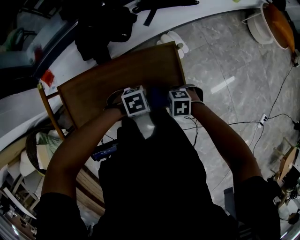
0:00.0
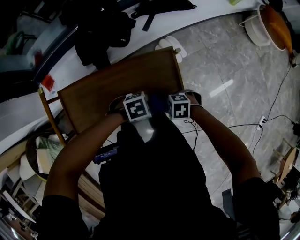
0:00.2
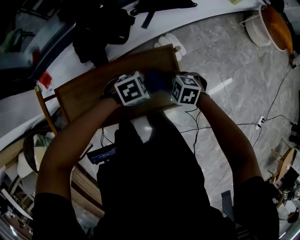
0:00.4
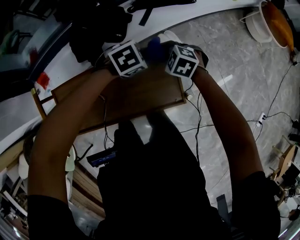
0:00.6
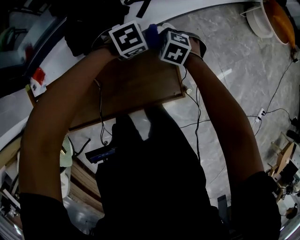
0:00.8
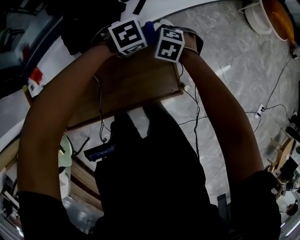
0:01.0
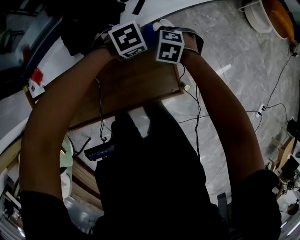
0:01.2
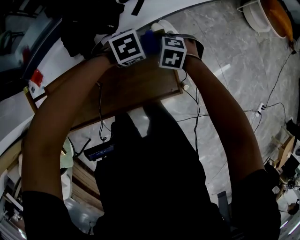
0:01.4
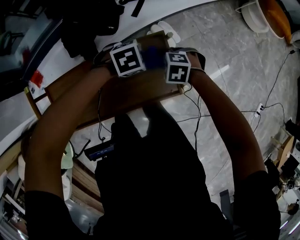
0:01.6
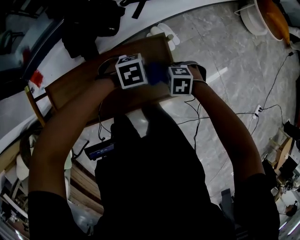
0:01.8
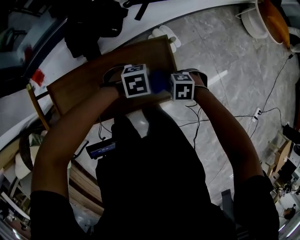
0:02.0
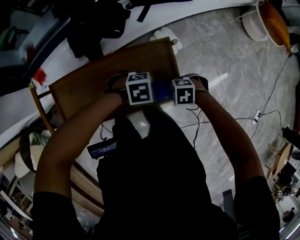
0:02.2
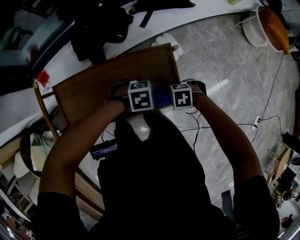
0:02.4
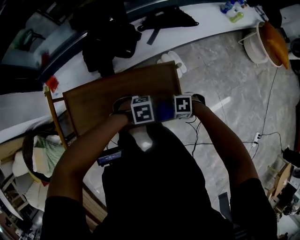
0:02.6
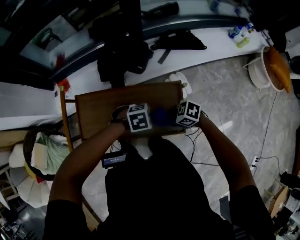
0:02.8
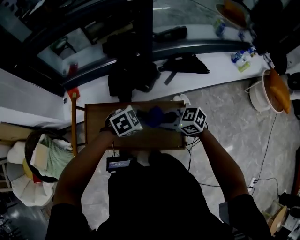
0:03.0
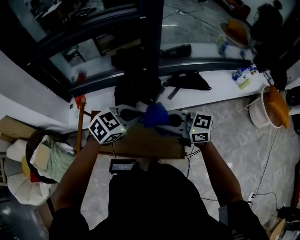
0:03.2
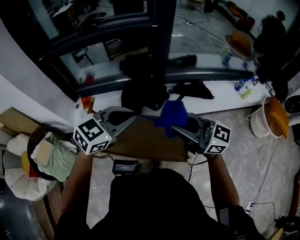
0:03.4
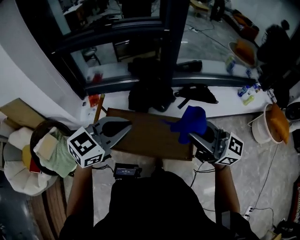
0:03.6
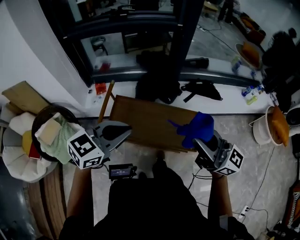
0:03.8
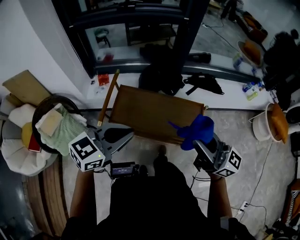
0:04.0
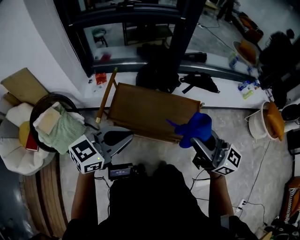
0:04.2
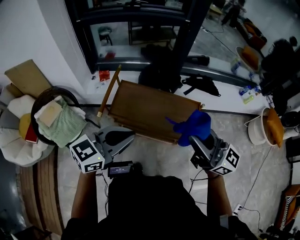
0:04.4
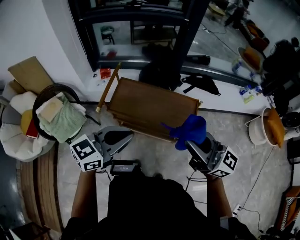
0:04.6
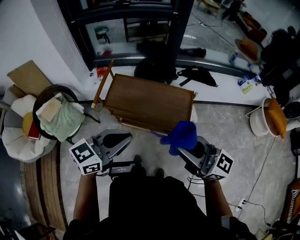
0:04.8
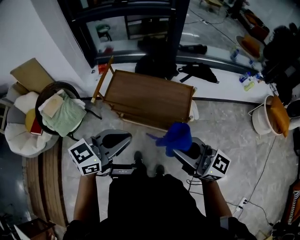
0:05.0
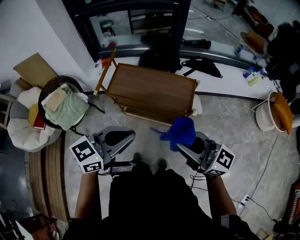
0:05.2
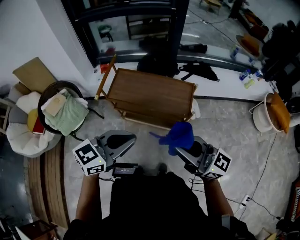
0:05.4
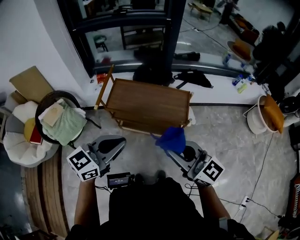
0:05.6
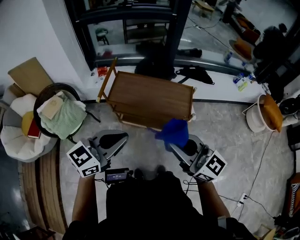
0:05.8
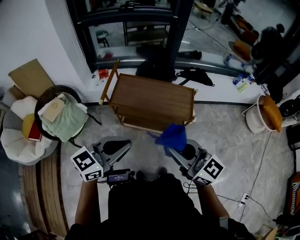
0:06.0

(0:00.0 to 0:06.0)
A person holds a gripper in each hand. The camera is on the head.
0:00.0 - 0:01.6: The left gripper ends up about 15 cm from where it was.
0:01.6 - 0:03.0: The right gripper is displaced upward by approximately 20 cm, and points its fingers about 50 degrees further upward. Meanwhile the left gripper goes about 15 cm upward, and turns by approximately 30 degrees.
0:03.0 - 0:04.4: The left gripper ends up some 40 cm from where it was, and points its fingers approximately 40 degrees further upward, while the right gripper shifts some 30 cm upward, and points its fingers approximately 40 degrees further upward.
0:04.4 - 0:06.0: Both grippers travel together backward, approximately 15 cm.

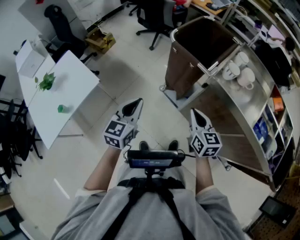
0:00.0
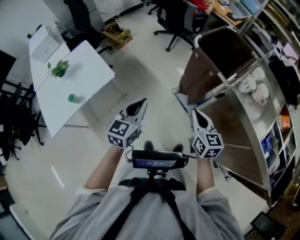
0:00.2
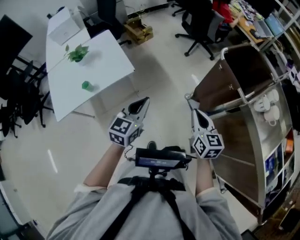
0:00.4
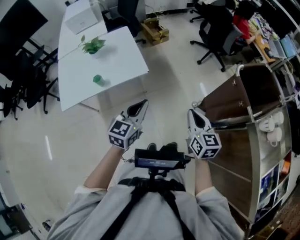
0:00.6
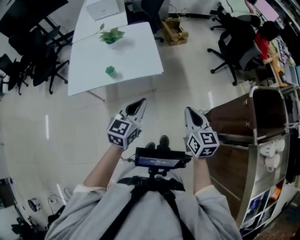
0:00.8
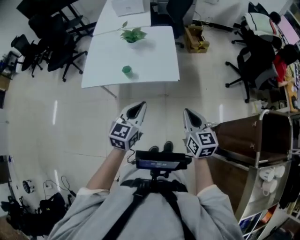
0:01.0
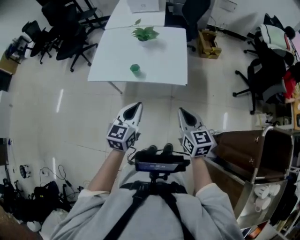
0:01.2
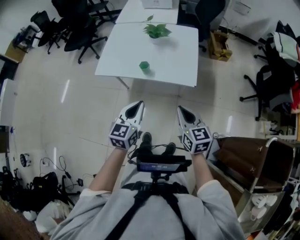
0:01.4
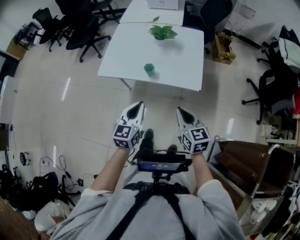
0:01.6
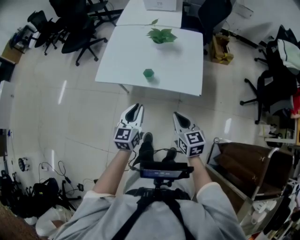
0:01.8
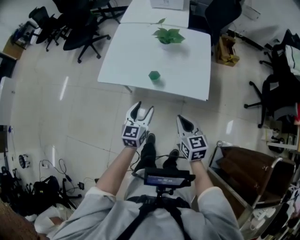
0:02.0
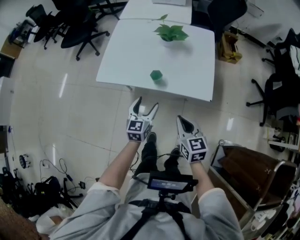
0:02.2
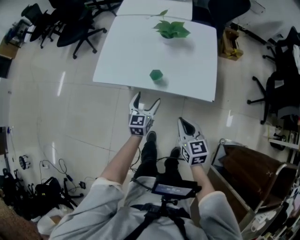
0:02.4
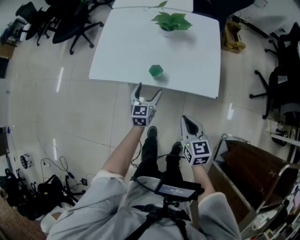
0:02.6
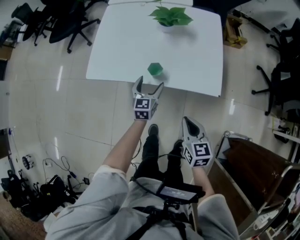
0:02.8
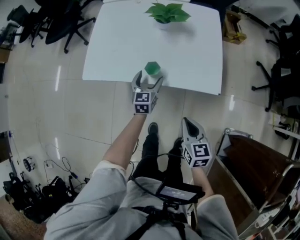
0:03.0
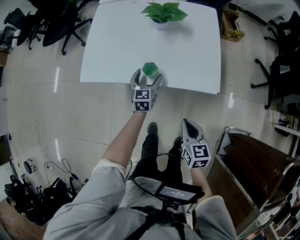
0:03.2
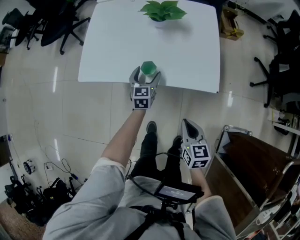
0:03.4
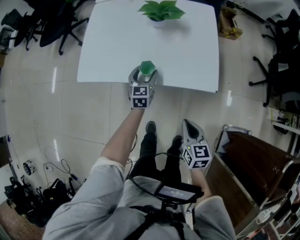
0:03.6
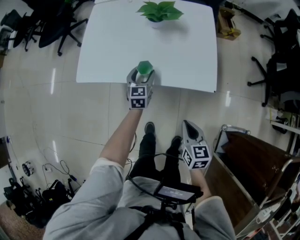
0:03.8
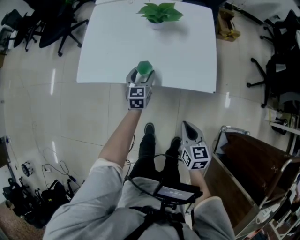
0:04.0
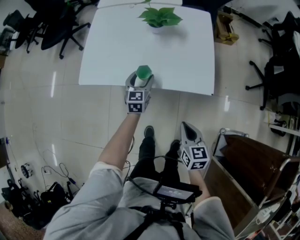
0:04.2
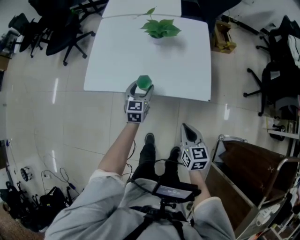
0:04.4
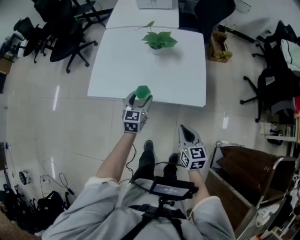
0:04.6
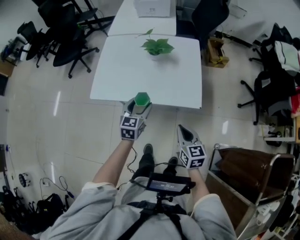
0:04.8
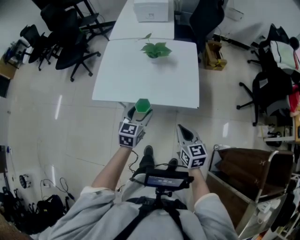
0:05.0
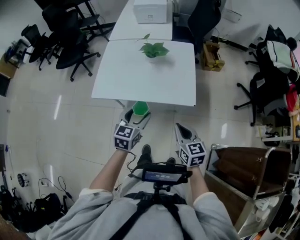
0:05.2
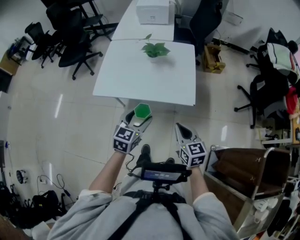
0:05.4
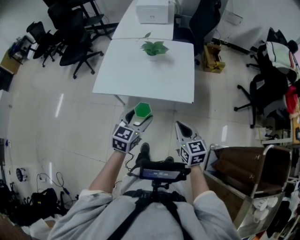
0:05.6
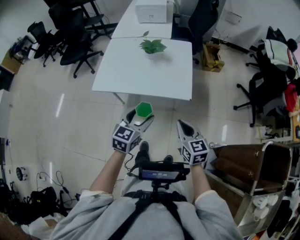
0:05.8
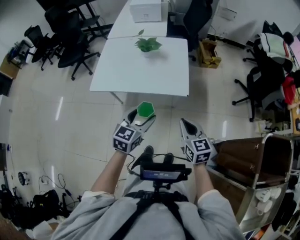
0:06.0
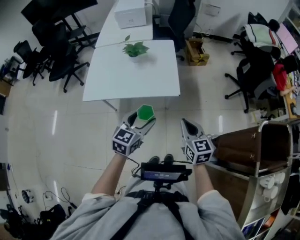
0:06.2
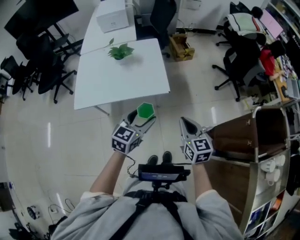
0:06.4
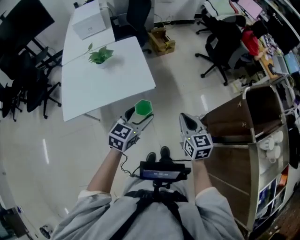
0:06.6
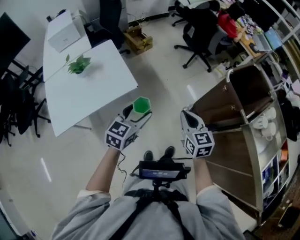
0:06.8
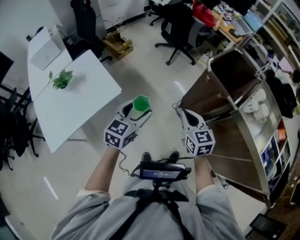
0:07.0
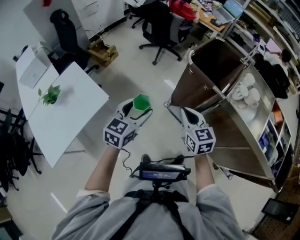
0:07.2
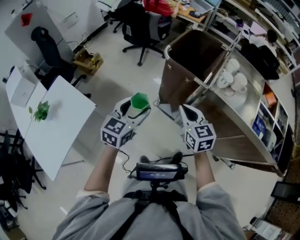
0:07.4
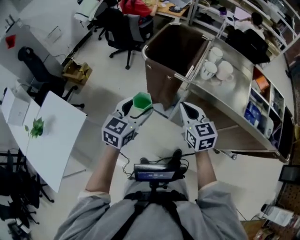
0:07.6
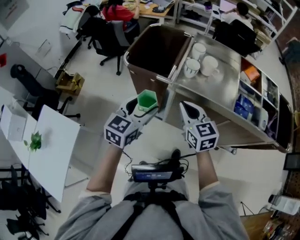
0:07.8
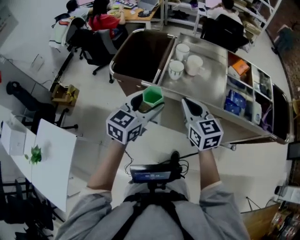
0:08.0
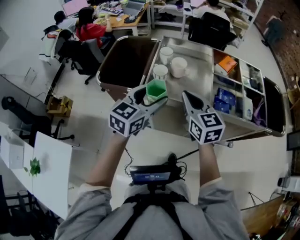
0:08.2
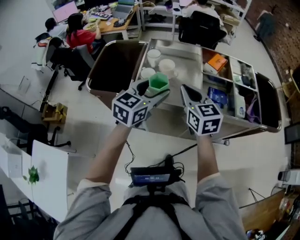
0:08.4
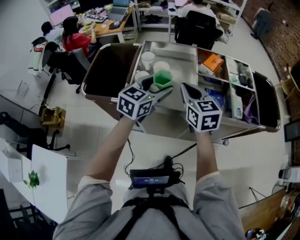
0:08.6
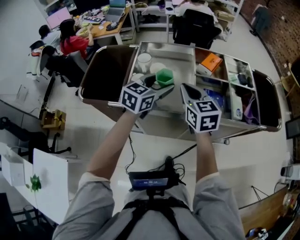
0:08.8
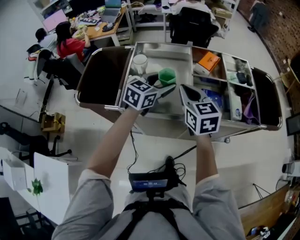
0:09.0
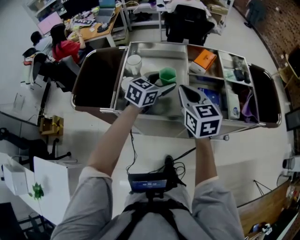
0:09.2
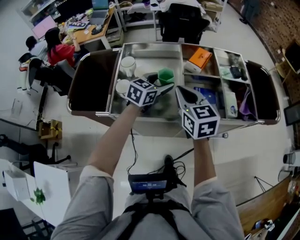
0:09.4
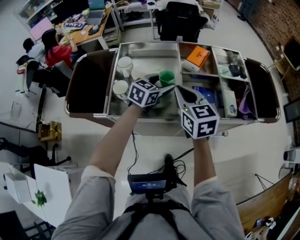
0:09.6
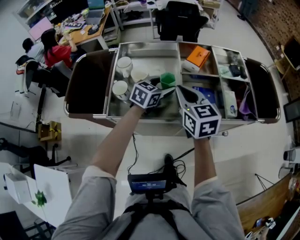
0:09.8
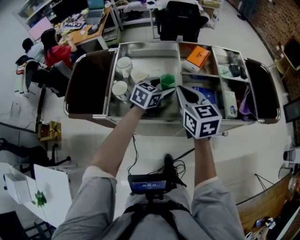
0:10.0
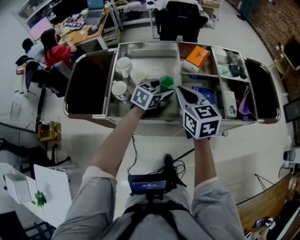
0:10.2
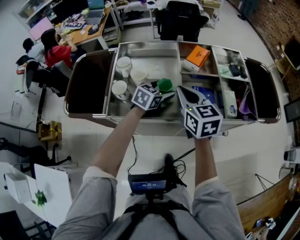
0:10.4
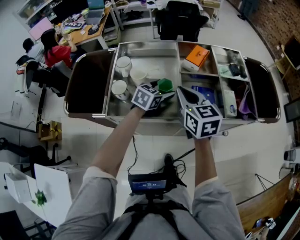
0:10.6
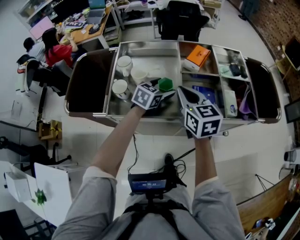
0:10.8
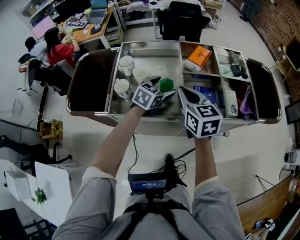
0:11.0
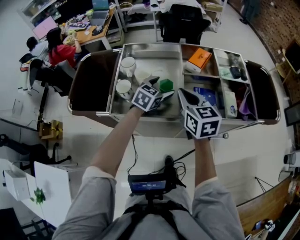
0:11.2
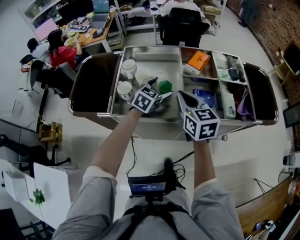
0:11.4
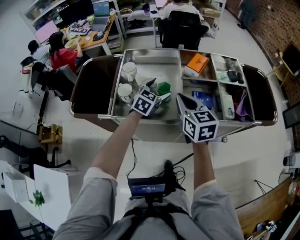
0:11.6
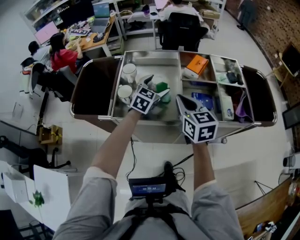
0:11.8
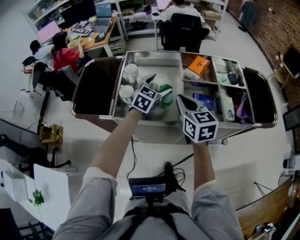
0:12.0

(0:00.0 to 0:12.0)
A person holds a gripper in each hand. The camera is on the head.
0:00.0 - 0:01.6: The pair of grippers is taken about 50 cm. The left gripper swivels some 60 degrees; the right gripper rotates about 70 degrees.
0:01.6 - 0:03.0: The left gripper shifts some 35 cm forward and downward, and opens up; the right gripper is displaced downward and forward by roughly 20 cm.
0:03.0 - 0:04.4: The left gripper shifts approximately 5 cm upward.
0:04.4 - 0:06.0: The right gripper shifts roughly 20 cm upward, backward and to the right; the left gripper heads backward, upward and to the right, covering about 35 cm.
0:06.0 - 0:07.6: The two grippers travel together, some 40 cm. The left gripper turns by approximately 70 degrees, while the right gripper swivels roughly 70 degrees.
0:07.6 - 0:09.0: The right gripper shifts by roughly 35 cm, and rotates about 30 degrees; the left gripper changes place by approximately 50 cm, and changes its angle by approximately 40 degrees.
0:09.0 - 0:10.4: The left gripper is displaced downward and to the right by some 15 cm, while the right gripper changes place by about 5 cm.
0:10.4 - 0:12.0: The left gripper heads upward, covering roughly 10 cm, and swivels roughly 20 degrees.

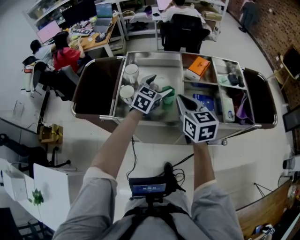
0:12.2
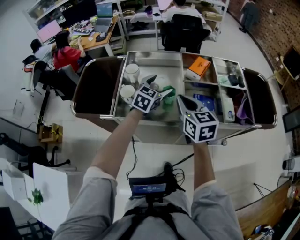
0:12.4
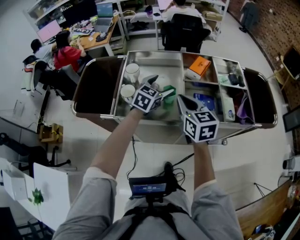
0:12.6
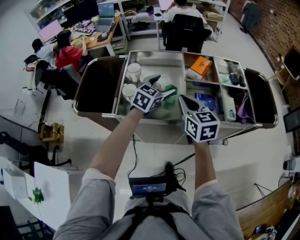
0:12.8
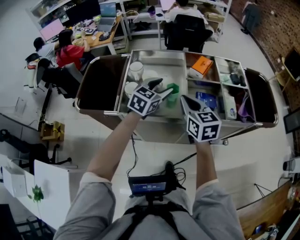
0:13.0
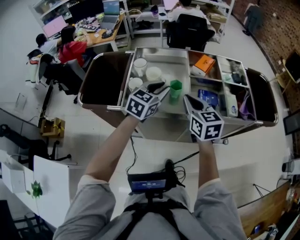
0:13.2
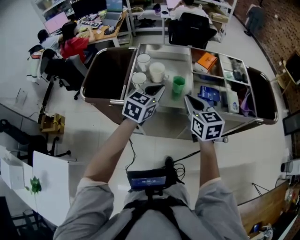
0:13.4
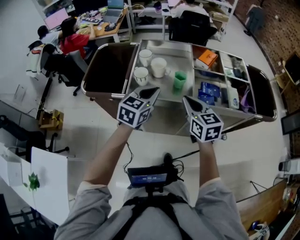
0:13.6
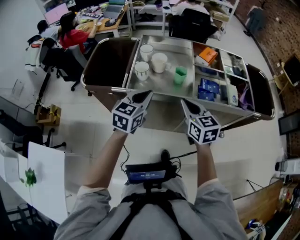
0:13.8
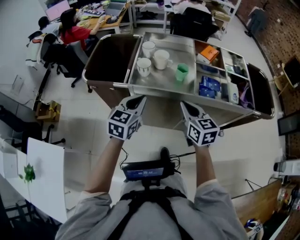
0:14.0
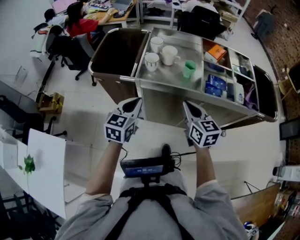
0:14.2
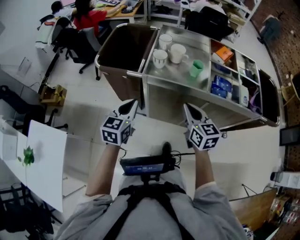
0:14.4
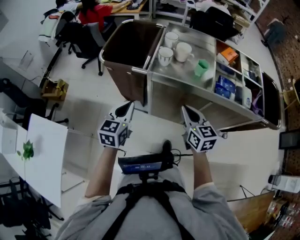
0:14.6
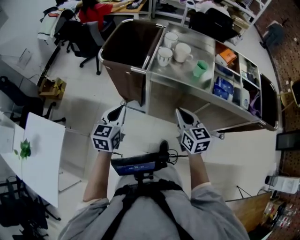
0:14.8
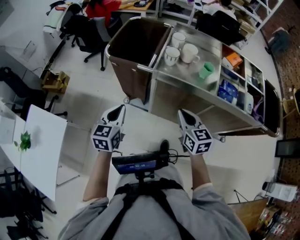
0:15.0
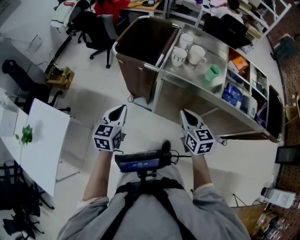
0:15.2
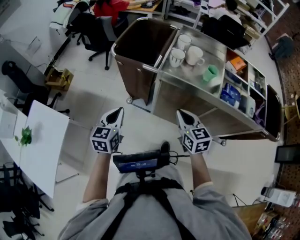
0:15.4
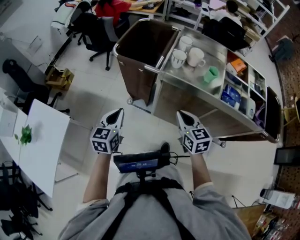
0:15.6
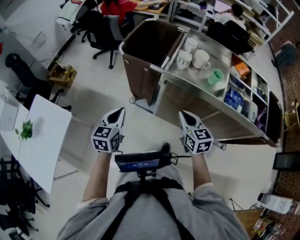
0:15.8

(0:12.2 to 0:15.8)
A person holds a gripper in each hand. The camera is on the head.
0:12.2 - 0:14.0: The left gripper is displaced backward and to the left by roughly 30 cm, and closes, while the right gripper heads backward and downward, covering roughly 15 cm.
0:14.0 - 0:15.8: The left gripper moves to the left and backward, roughly 25 cm, and rotates about 30 degrees; the right gripper heads to the left and downward, covering some 15 cm.

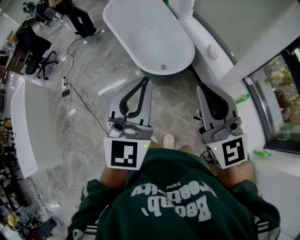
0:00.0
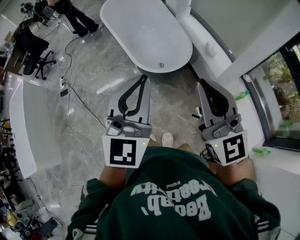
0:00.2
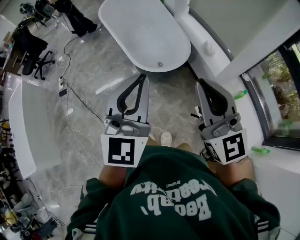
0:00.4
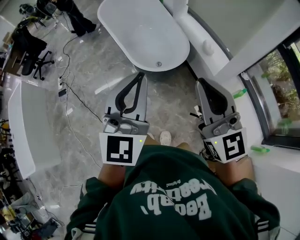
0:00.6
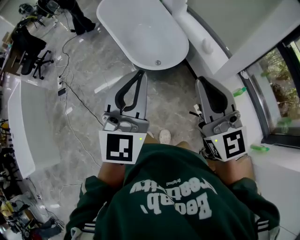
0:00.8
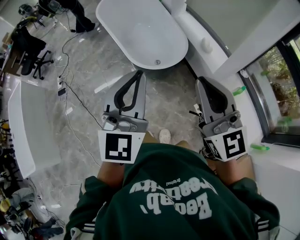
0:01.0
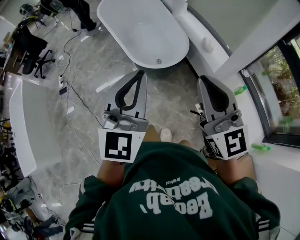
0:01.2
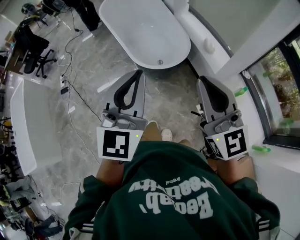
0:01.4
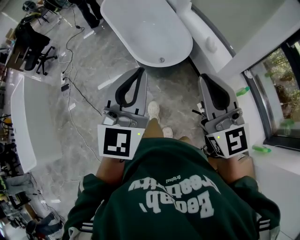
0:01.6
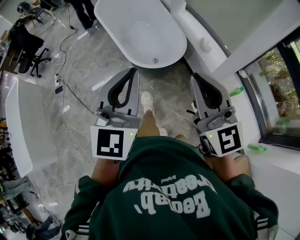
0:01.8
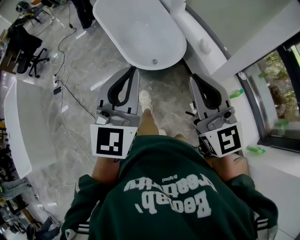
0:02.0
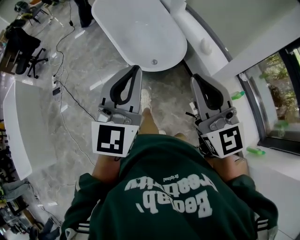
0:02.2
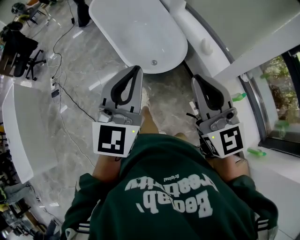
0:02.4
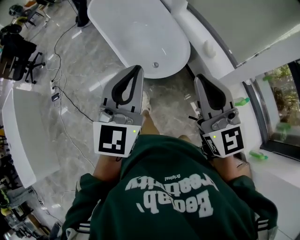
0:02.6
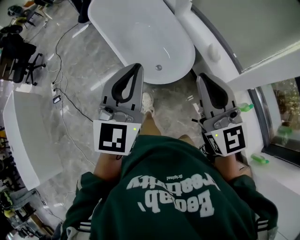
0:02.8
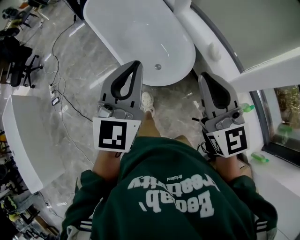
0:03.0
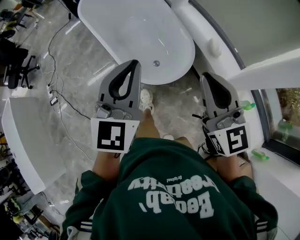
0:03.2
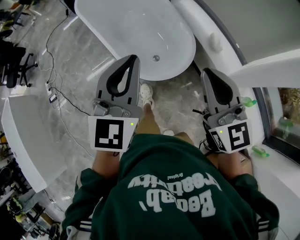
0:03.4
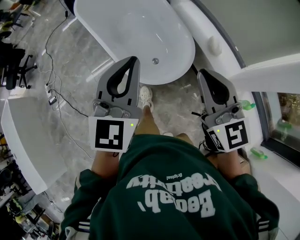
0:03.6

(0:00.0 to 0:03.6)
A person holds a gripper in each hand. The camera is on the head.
0:00.0 - 0:01.8: The grippers make only small movements.
0:01.8 - 0:03.6: Both grippers move forward, approximately 30 cm.
